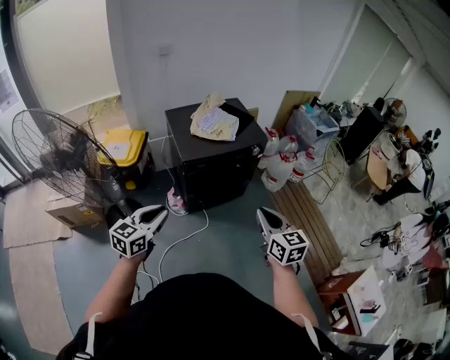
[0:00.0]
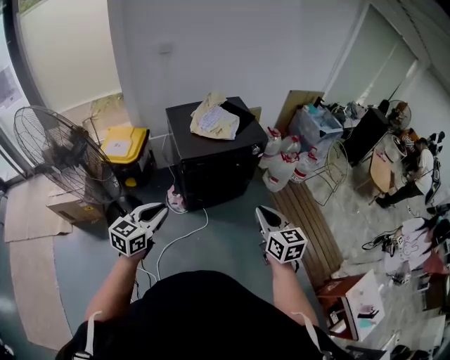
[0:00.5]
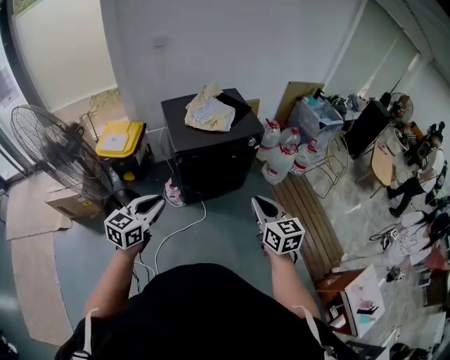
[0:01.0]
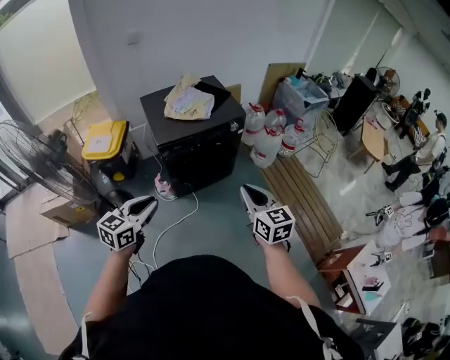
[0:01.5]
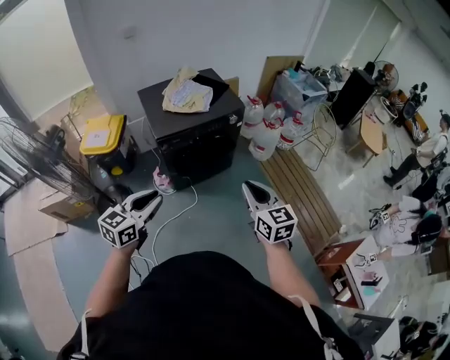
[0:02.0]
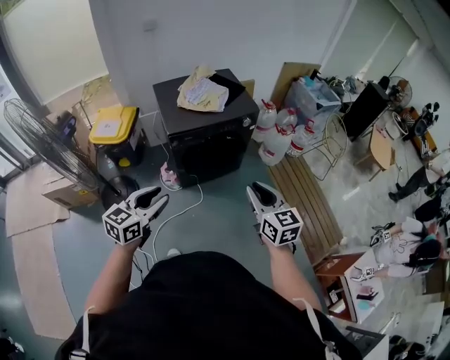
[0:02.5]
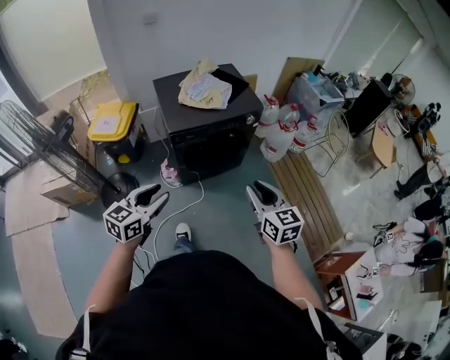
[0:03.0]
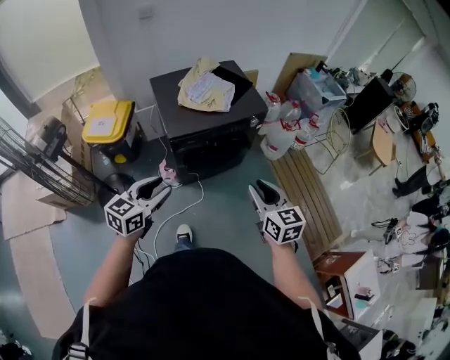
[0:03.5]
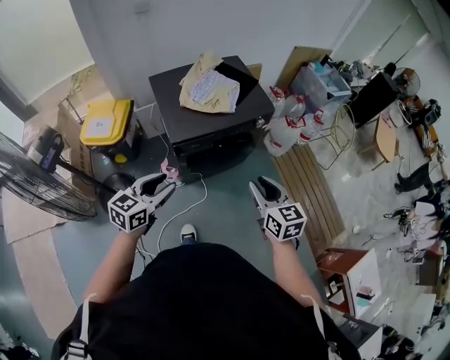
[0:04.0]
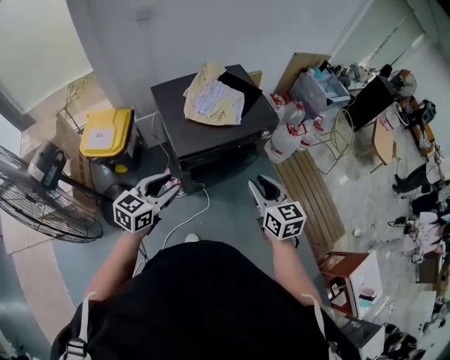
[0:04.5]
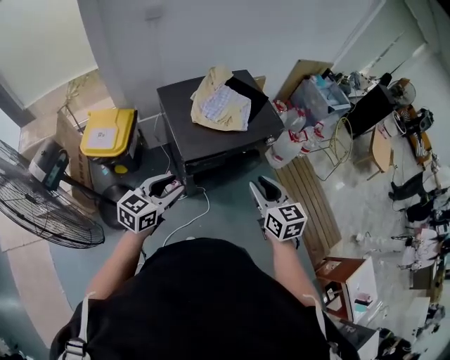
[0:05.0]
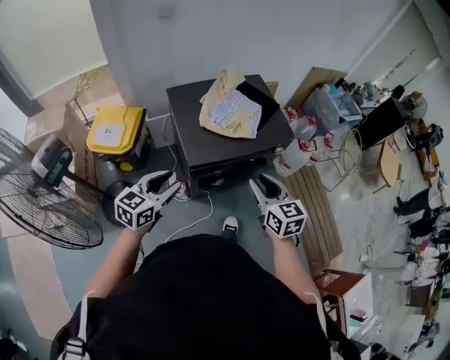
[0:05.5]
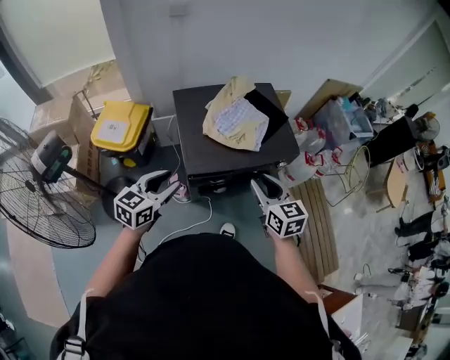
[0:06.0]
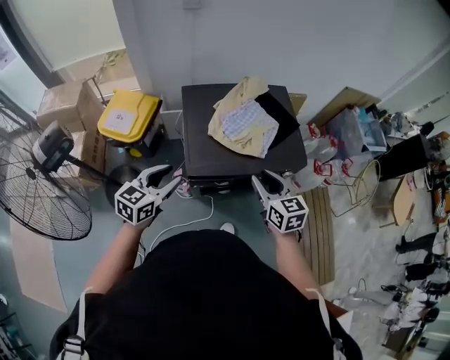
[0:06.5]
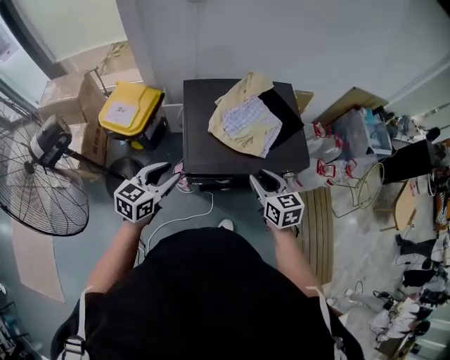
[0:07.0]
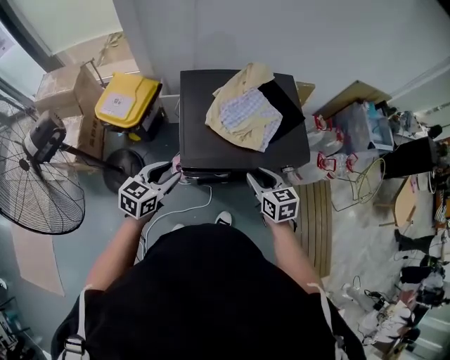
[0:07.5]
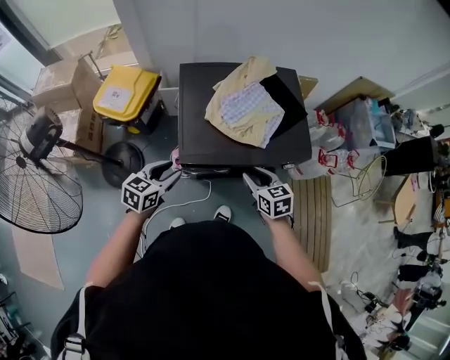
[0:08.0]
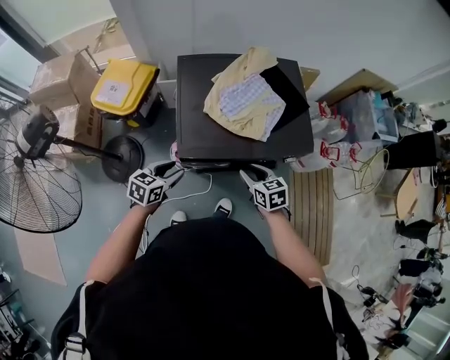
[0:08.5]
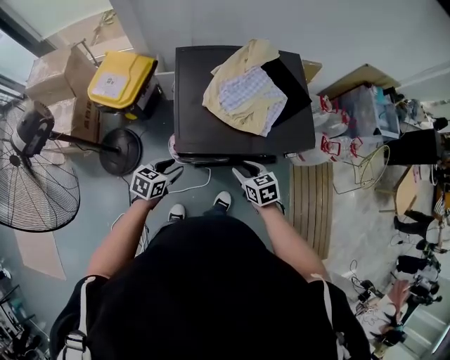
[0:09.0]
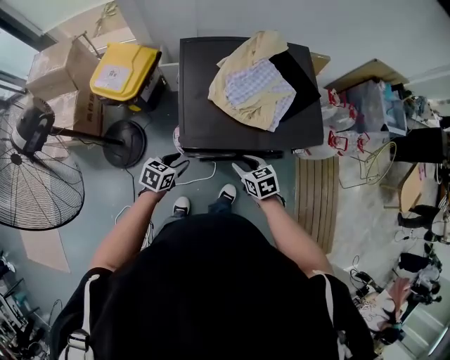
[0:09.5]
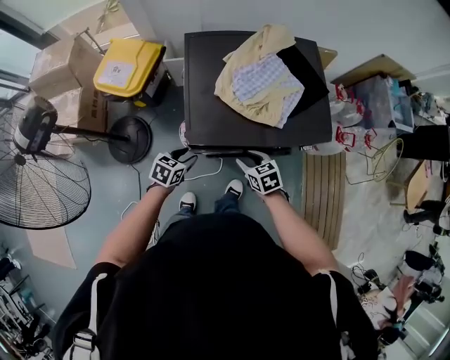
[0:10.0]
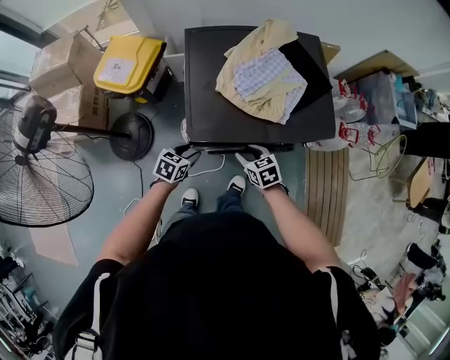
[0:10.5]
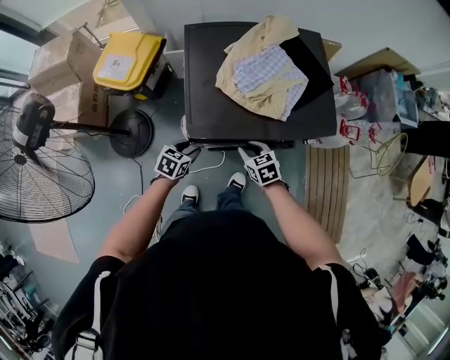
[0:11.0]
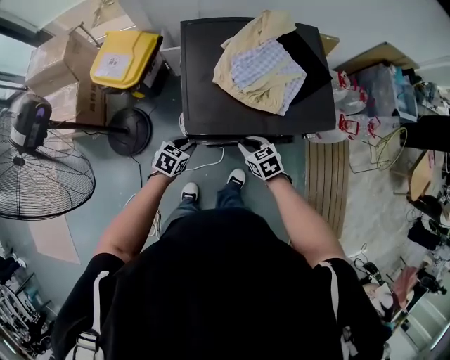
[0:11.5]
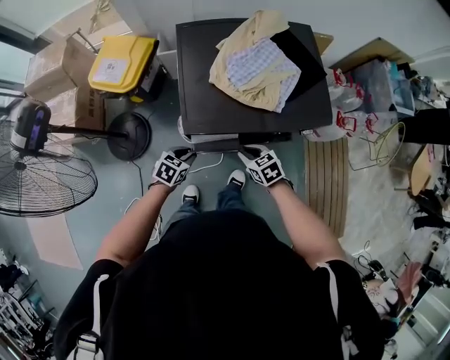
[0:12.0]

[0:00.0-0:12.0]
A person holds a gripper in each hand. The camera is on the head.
0:00.0 to 0:02.0: The left gripper moves to the right, about 10 cm. The right gripper goes approximately 5 cm to the right.
0:02.0 to 0:04.0: The two grippers go approximately 20 cm forward and to the left. The right gripper opens up, while the left gripper opens its fingers.
0:04.0 to 0:06.0: The two grippers go approximately 20 cm forward and to the left.
0:06.0 to 0:08.0: Both grippers travel together downward and forward, roughly 15 cm. The right gripper changes its angle by about 20 degrees.
0:08.0 to 0:10.0: The two grippers go about 15 cm downward.
0:10.0 to 0:12.0: The right gripper closes its fingers.

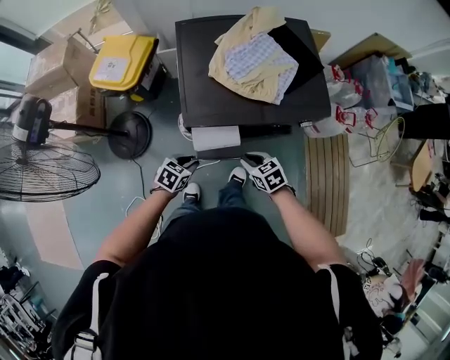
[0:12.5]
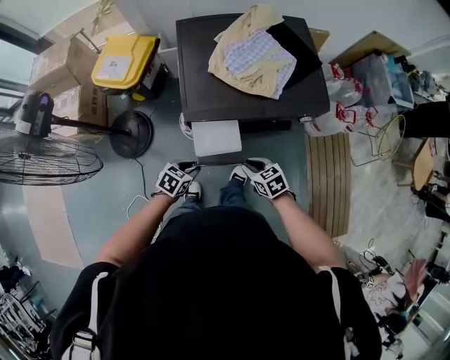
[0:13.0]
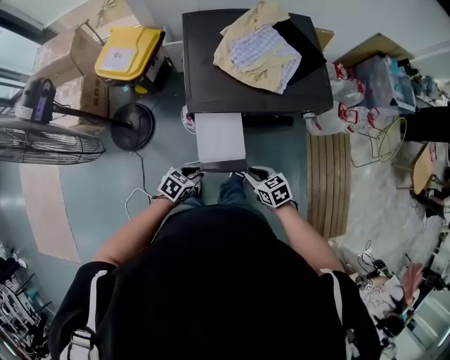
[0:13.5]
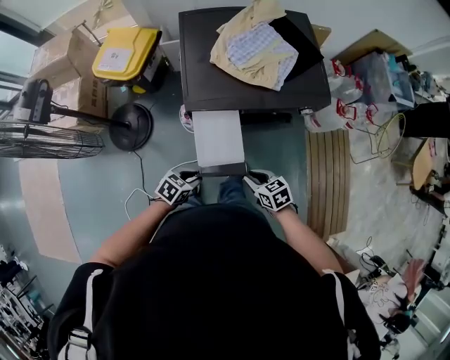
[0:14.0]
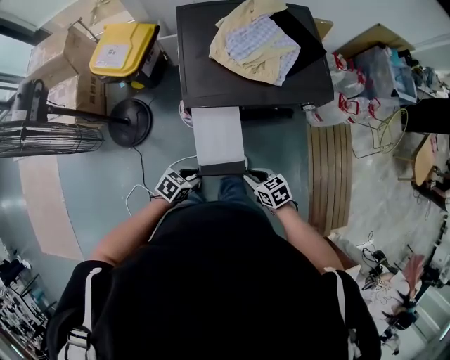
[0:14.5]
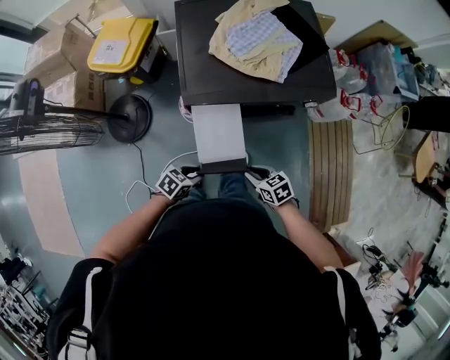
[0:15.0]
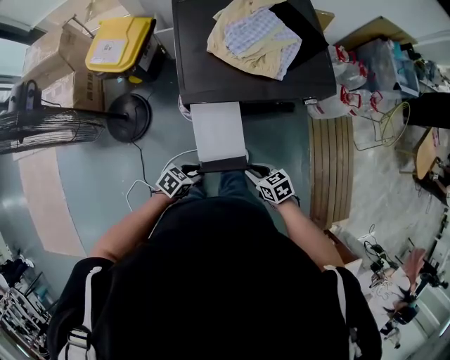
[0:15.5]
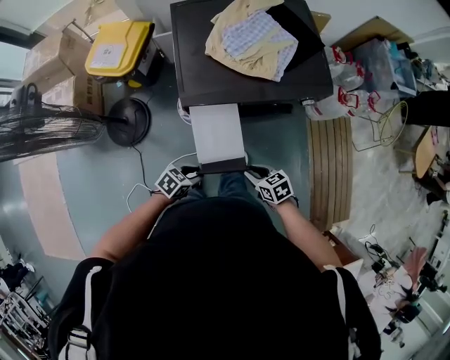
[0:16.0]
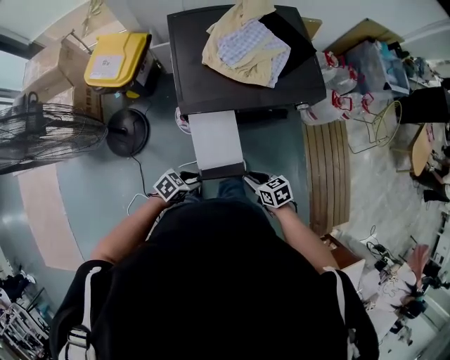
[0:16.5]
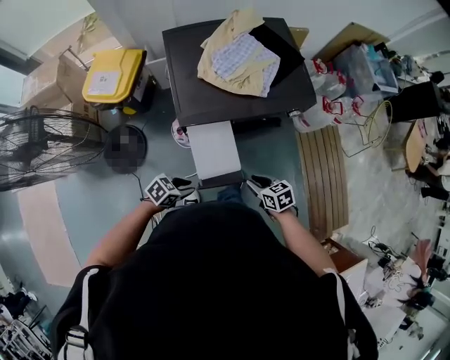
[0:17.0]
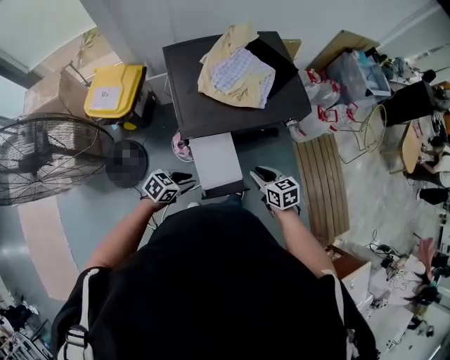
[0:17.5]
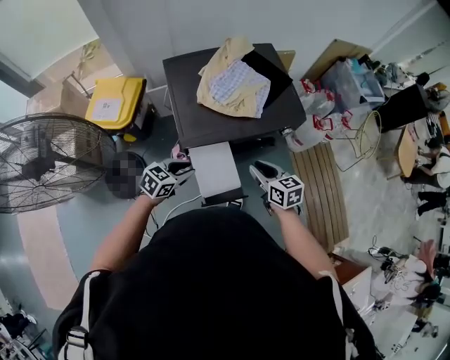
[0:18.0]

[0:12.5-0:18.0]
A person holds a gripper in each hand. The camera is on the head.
0:12.5 to 0:14.5: The left gripper ends up some 15 cm from where it was. The right gripper shifts by roughly 15 cm.
0:14.5 to 0:16.0: The grippers stay close to where they were, moving slightly.
0:16.0 to 0:18.0: The right gripper goes approximately 15 cm upward, and changes its angle by about 30 degrees. Meanwhile the left gripper moves some 20 cm, and turns by some 20 degrees.

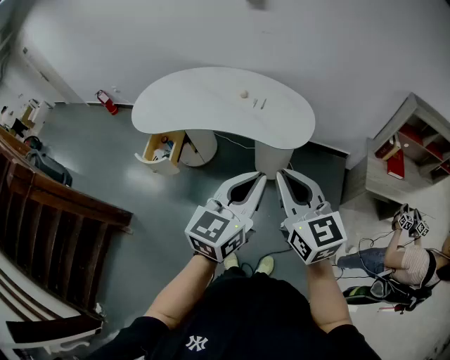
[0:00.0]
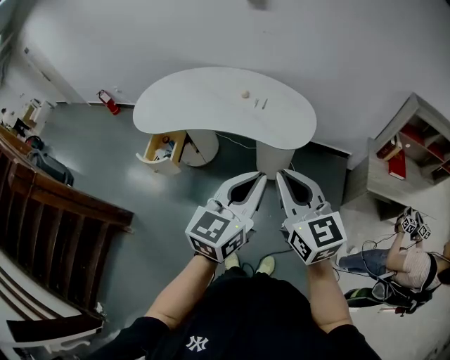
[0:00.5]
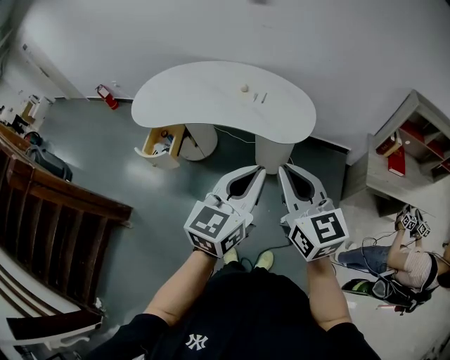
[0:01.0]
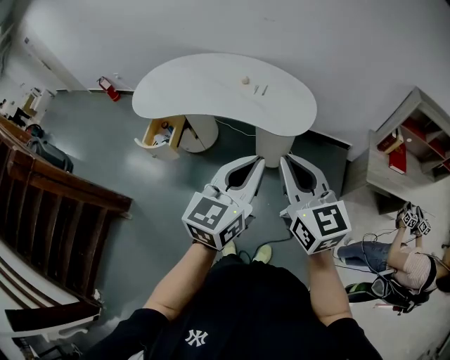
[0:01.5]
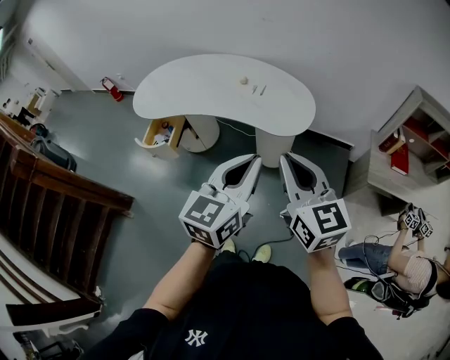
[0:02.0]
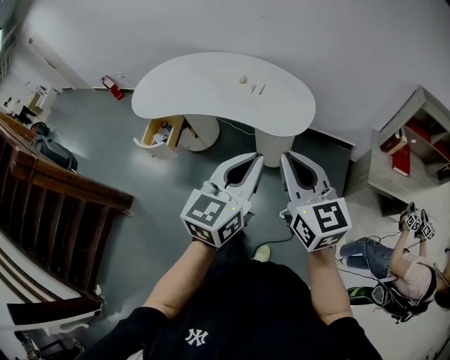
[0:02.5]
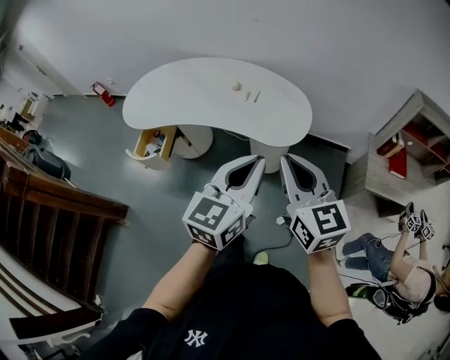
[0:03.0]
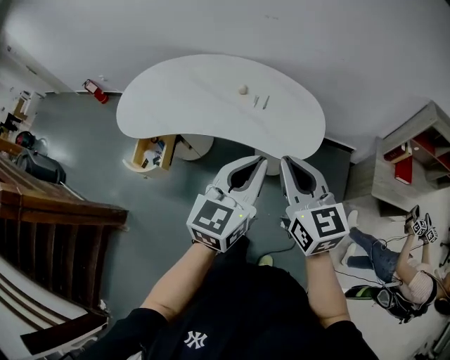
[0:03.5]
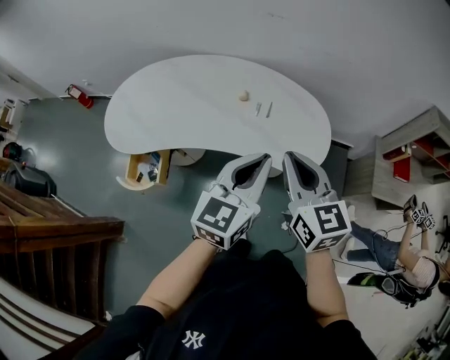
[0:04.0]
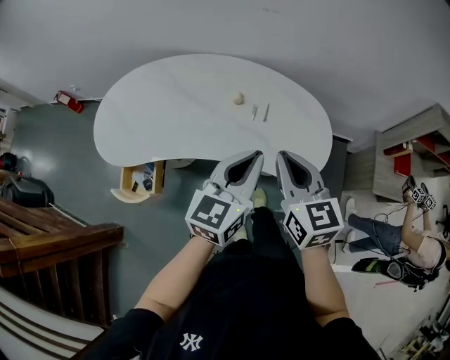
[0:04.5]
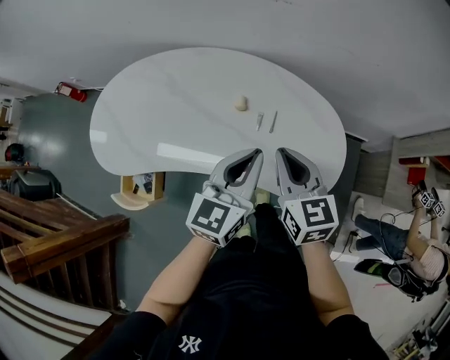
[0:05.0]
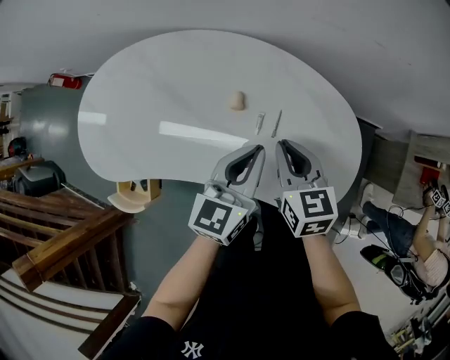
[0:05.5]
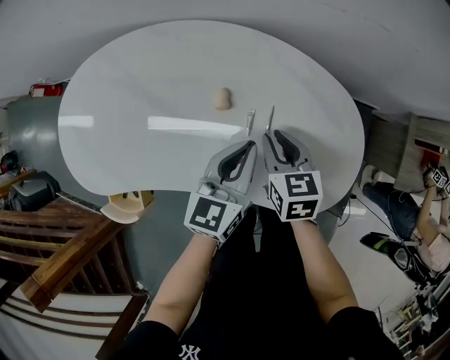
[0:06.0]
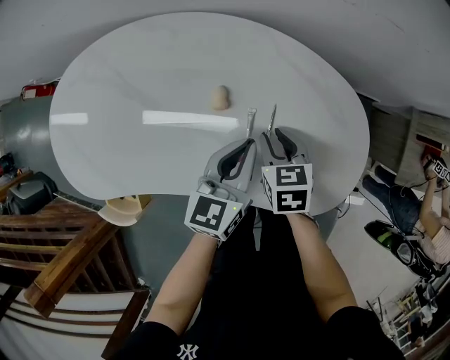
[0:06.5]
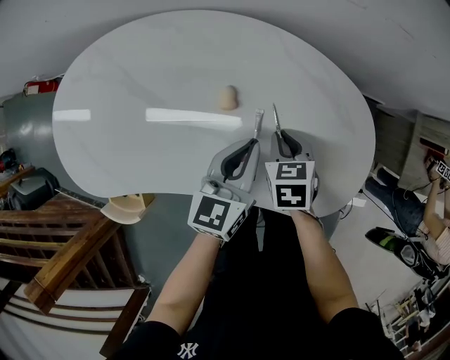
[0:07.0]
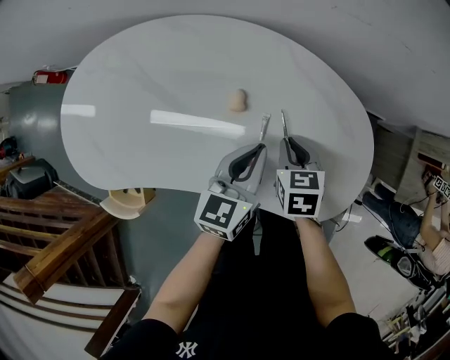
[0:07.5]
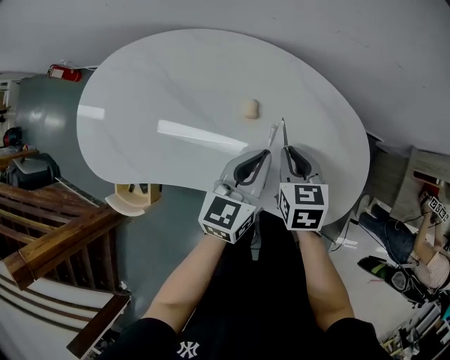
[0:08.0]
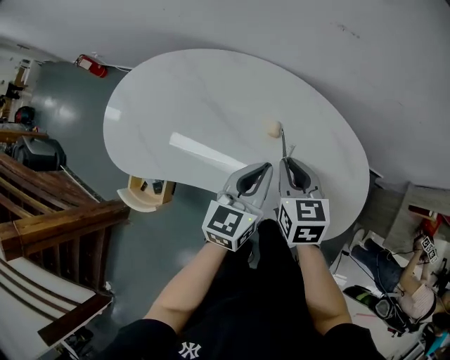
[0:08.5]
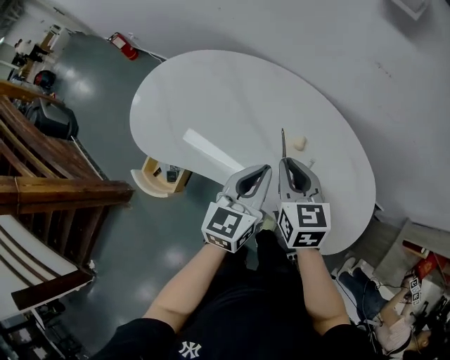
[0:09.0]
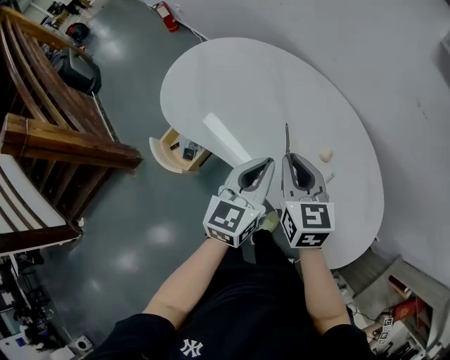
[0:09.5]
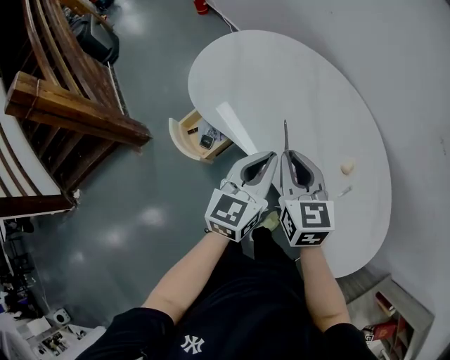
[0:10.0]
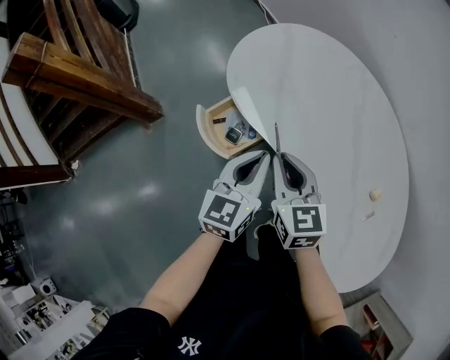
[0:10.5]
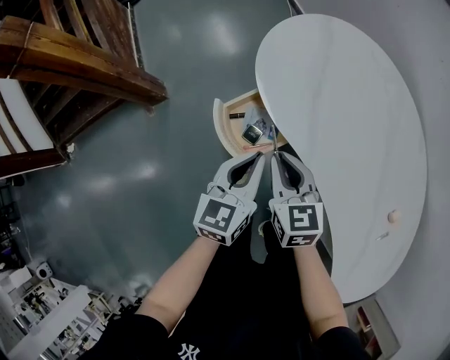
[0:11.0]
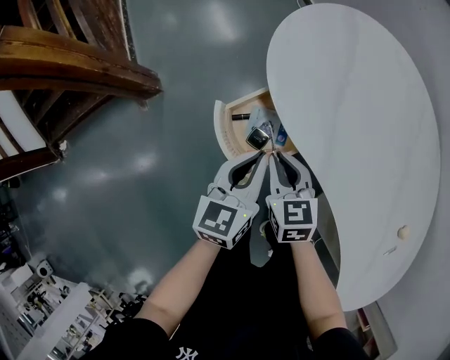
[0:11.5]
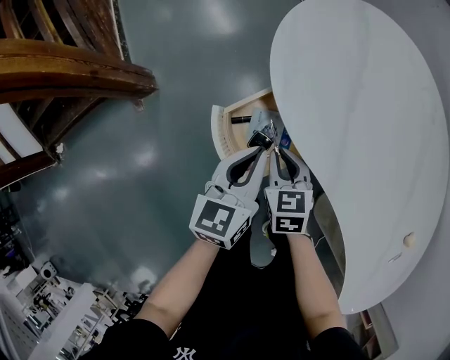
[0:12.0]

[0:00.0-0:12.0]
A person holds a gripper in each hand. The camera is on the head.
0:00.0 to 0:02.0: The right gripper moves to the right, about 5 cm.
0:02.0 to 0:04.0: The two grippers go roughly 30 cm forward.
0:04.0 to 0:06.0: The left gripper shifts about 40 cm forward and downward; the right gripper goes approximately 40 cm downward and forward, and swivels some 30 degrees.
0:06.0 to 0:08.0: The right gripper moves approximately 5 cm downward and comes back.
0:08.0 to 0:10.0: The left gripper changes place by about 30 cm, and turns by approximately 40 degrees. Meanwhile the right gripper changes place by some 35 cm, and swivels approximately 50 degrees.
0:10.0 to 0:12.0: The right gripper shifts some 40 cm downward, to the left and forward, and swivels approximately 30 degrees. Meanwhile the left gripper shifts about 40 cm to the left, downward and forward, and rotates approximately 20 degrees.
